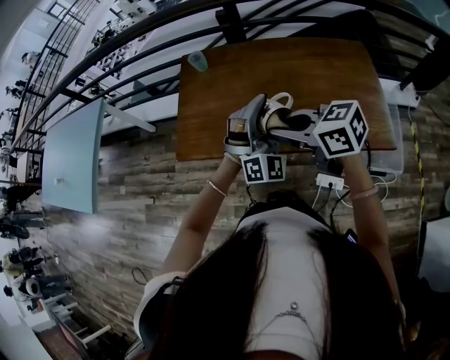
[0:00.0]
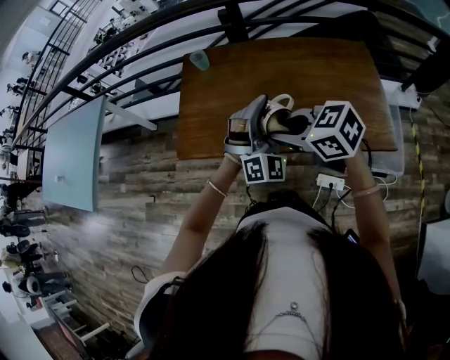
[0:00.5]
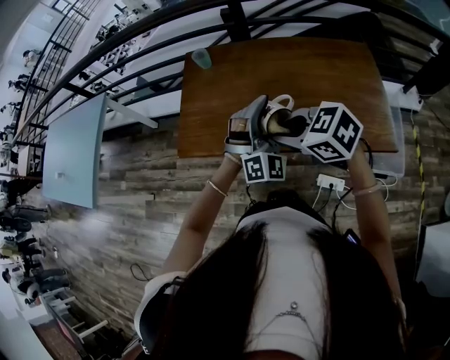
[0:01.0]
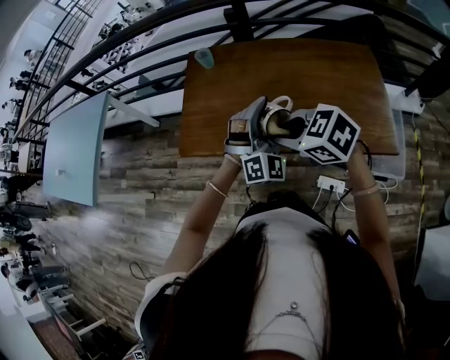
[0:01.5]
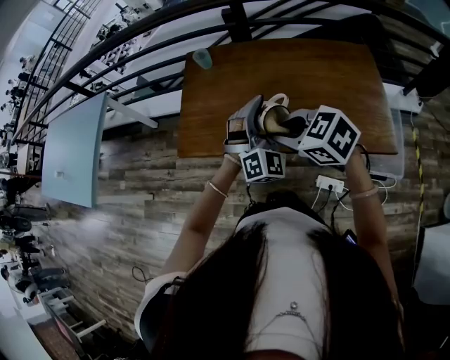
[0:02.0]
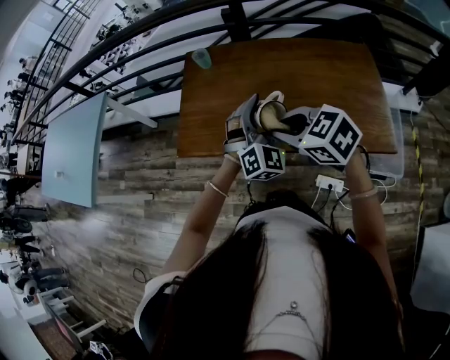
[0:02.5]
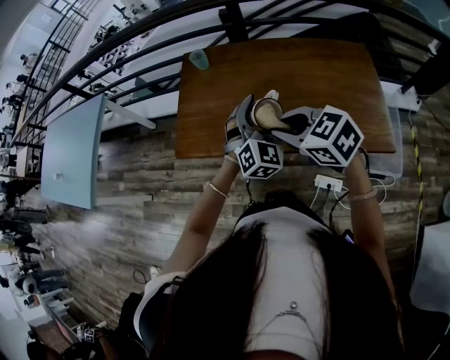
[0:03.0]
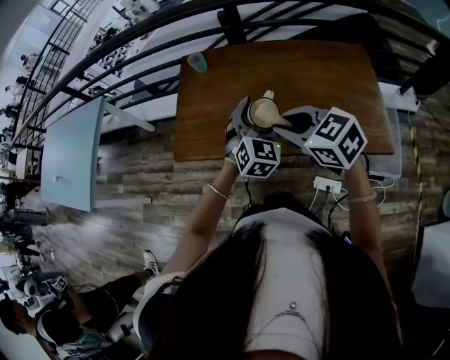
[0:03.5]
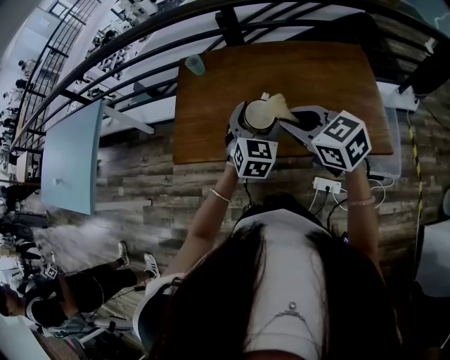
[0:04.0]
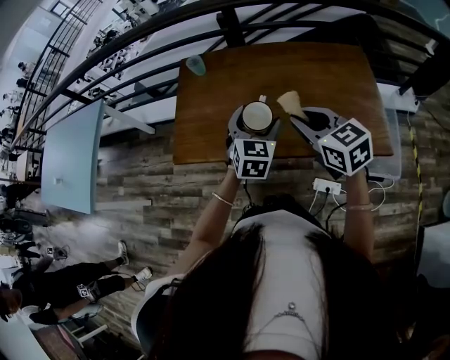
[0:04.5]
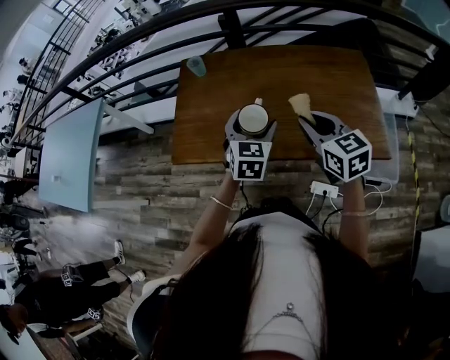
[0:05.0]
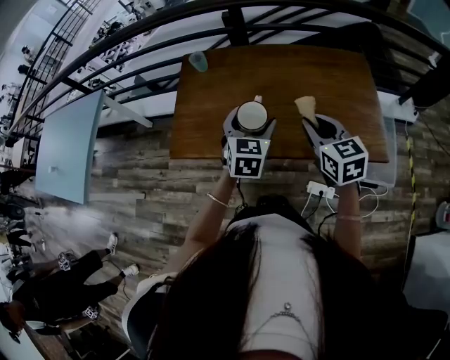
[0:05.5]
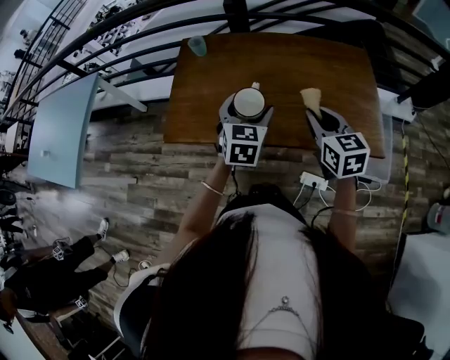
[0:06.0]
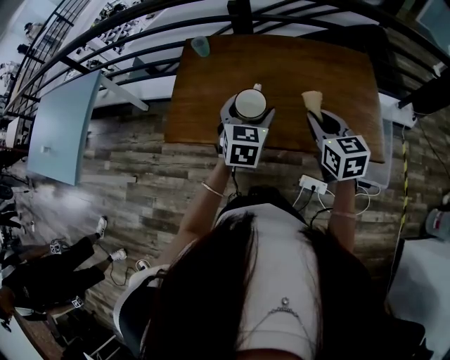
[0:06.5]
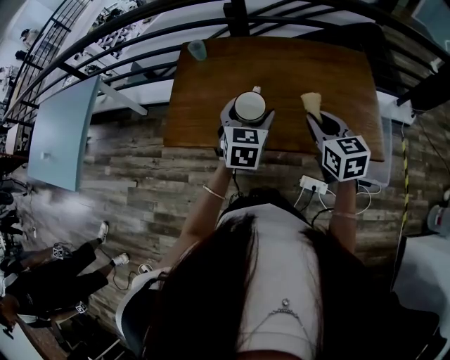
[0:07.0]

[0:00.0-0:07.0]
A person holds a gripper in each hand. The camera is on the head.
0:00.0 to 0:02.0: The right gripper turns by approximately 30 degrees.
0:02.0 to 0:03.5: The left gripper turns by roughly 20 degrees.
0:03.5 to 0:05.0: The left gripper rotates some 20 degrees; the right gripper shifts some 10 cm to the right, and swivels approximately 30 degrees.
0:05.0 to 0:07.0: The grippers move only a little.

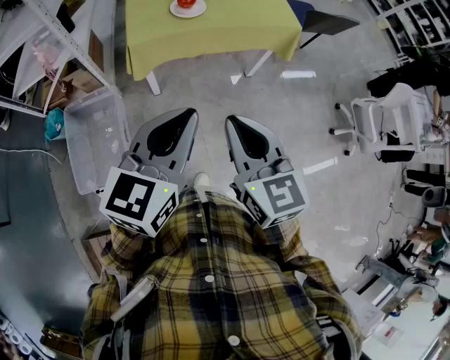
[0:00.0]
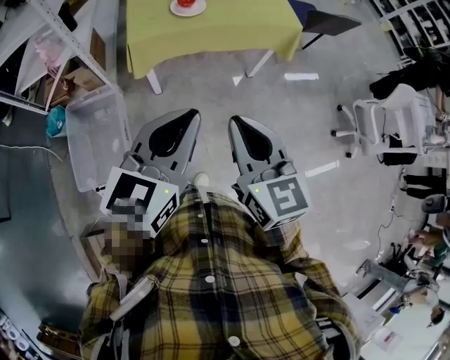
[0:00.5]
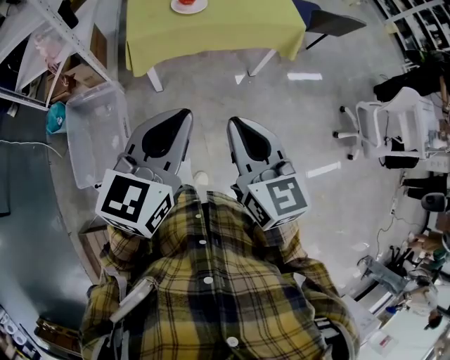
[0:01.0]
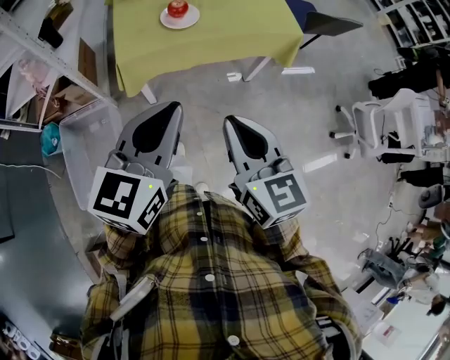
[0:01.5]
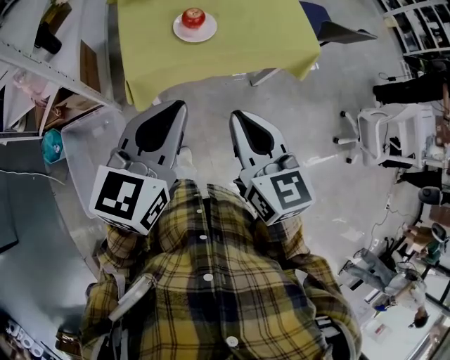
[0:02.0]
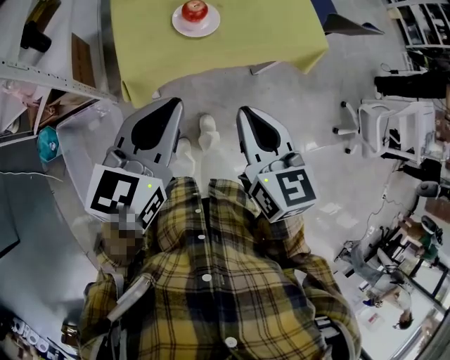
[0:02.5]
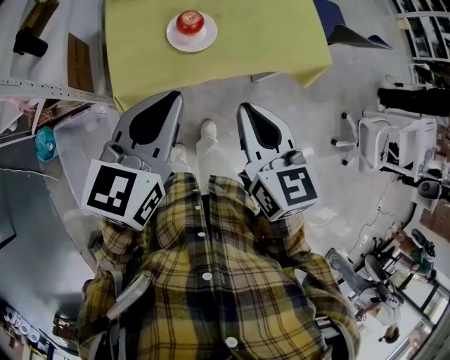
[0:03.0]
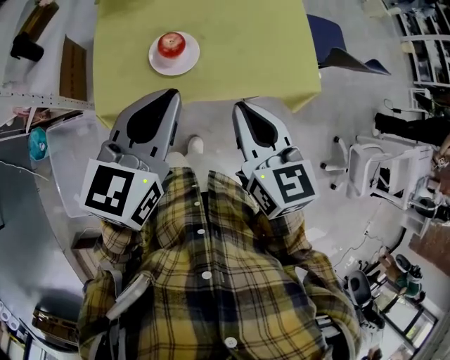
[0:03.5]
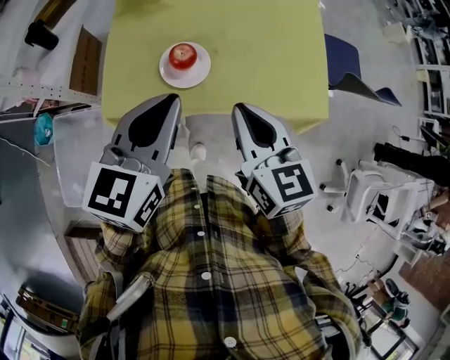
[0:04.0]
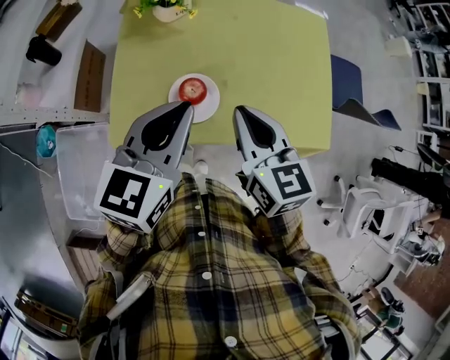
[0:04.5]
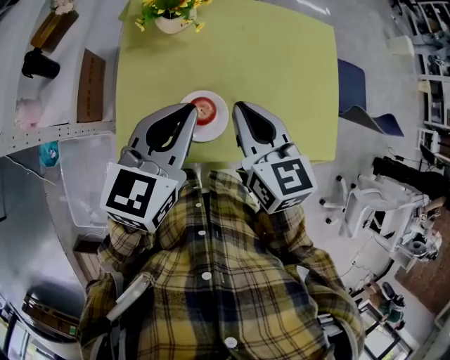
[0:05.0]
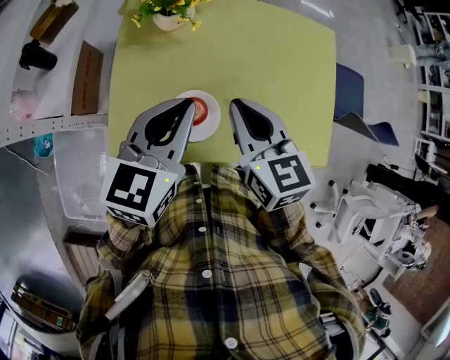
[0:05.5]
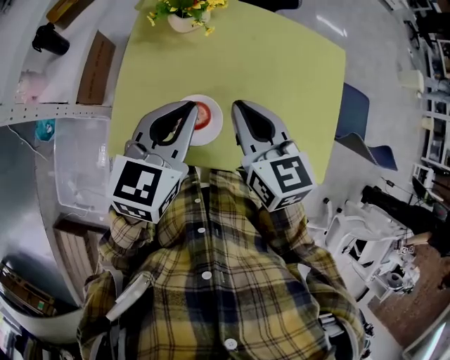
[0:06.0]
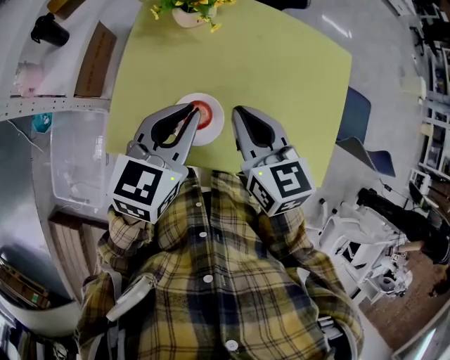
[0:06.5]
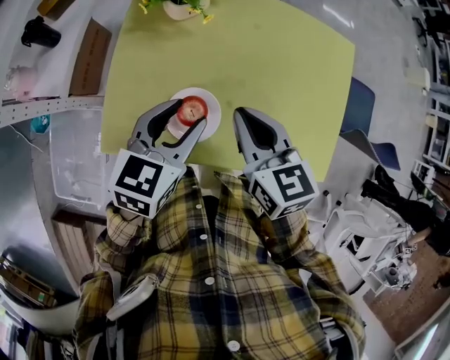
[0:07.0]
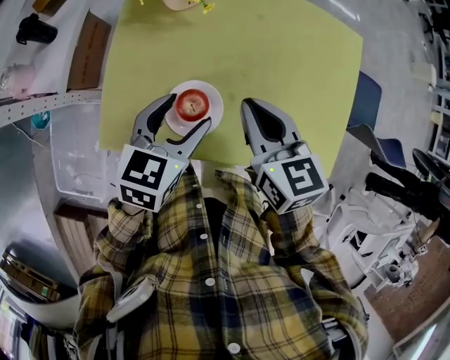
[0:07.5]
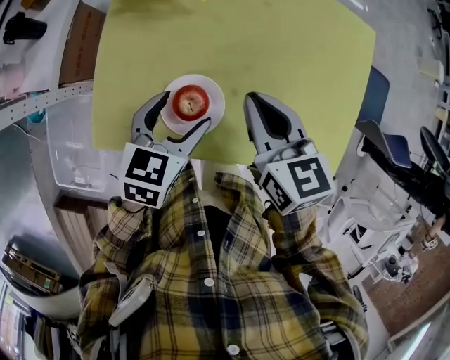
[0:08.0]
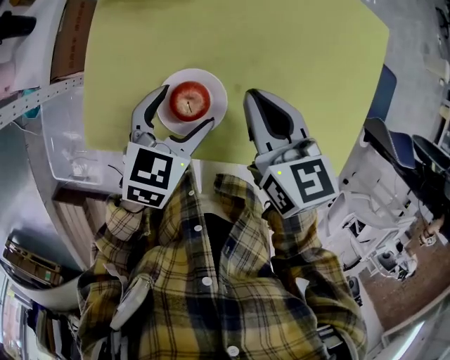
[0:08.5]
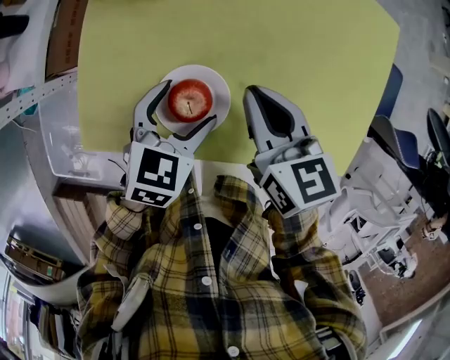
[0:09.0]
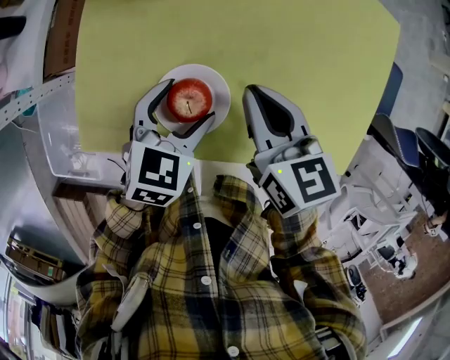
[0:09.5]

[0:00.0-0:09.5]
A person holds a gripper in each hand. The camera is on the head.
0:00.0 to 0:02.0: Both grippers move forward, about 25 cm.
0:02.0 to 0:04.0: Both grippers travel together forward, roughly 25 cm.
0:04.0 to 0:05.5: The grippers both shift forward by about 20 cm.
0:05.5 to 0:07.5: The right gripper travels downward by about 5 cm. The left gripper heads downward, covering about 10 cm, and opens its fingers.
0:07.5 to 0:09.5: Both grippers move downward, some 10 cm.

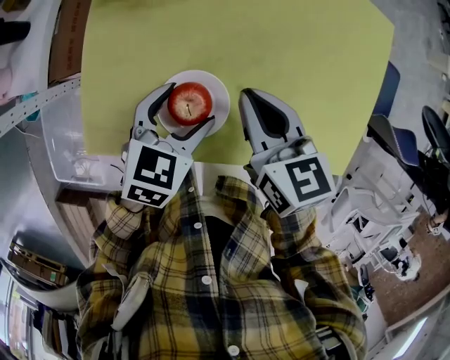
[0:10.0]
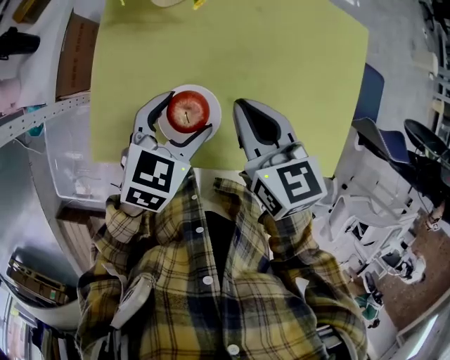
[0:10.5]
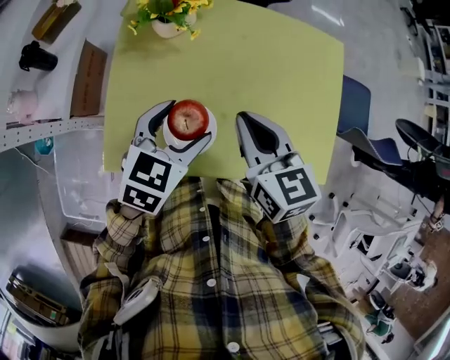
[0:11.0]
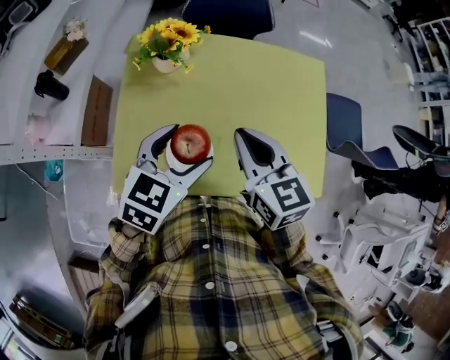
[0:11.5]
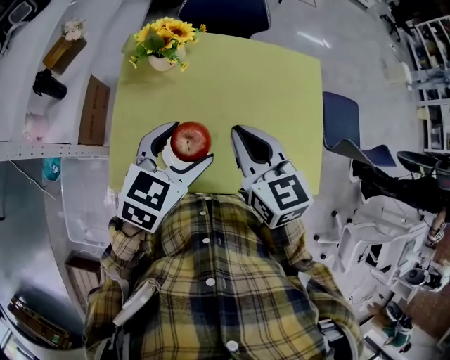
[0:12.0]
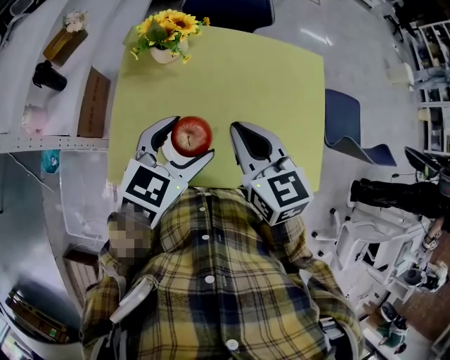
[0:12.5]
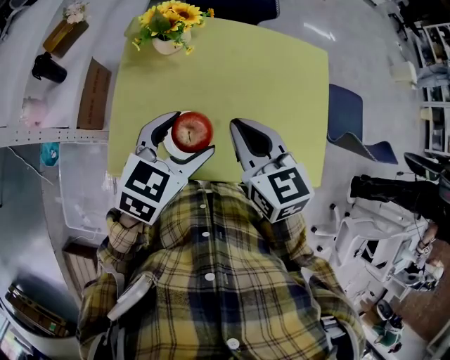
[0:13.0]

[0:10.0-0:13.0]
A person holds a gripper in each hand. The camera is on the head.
0:10.0 to 0:11.5: The two grippers go approximately 15 cm upward.
0:11.5 to 0:13.0: The grippers make only small movements.

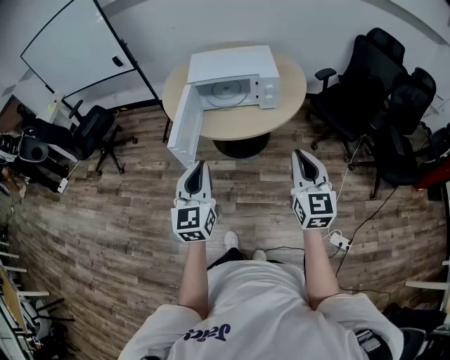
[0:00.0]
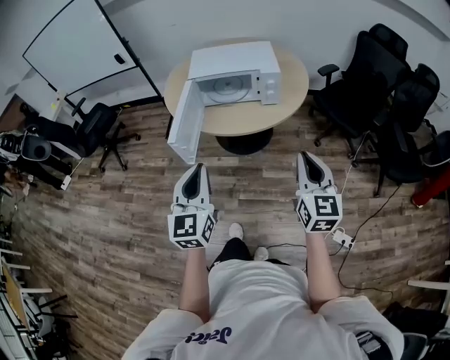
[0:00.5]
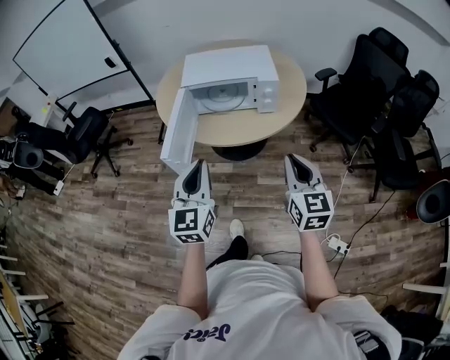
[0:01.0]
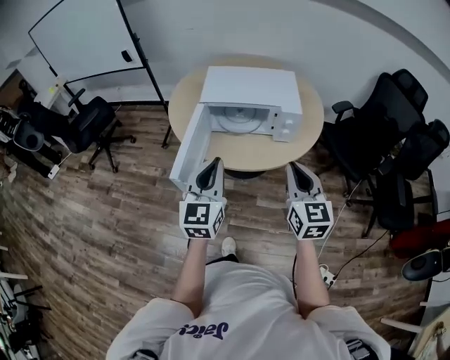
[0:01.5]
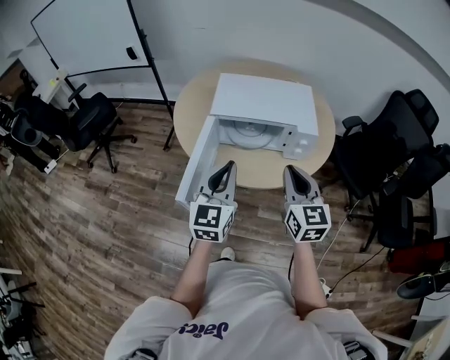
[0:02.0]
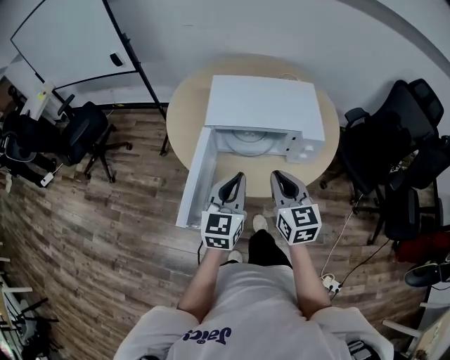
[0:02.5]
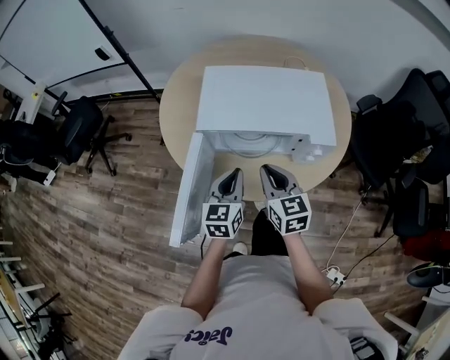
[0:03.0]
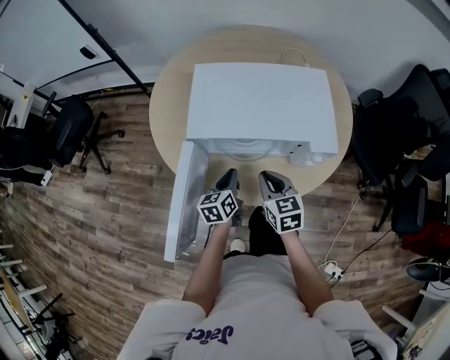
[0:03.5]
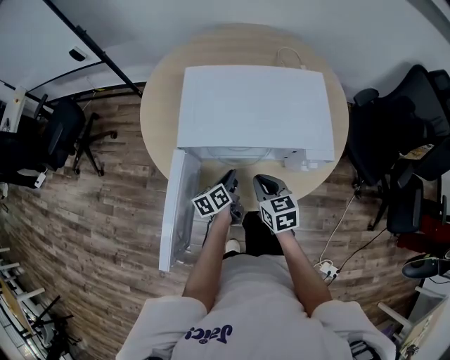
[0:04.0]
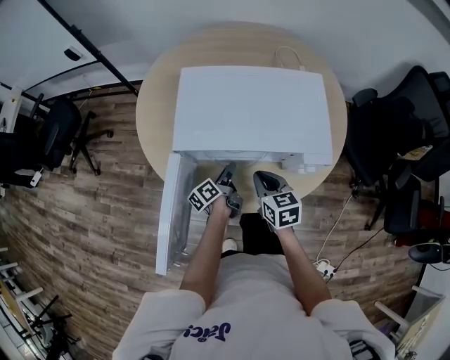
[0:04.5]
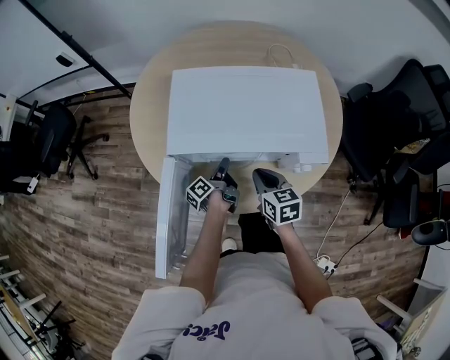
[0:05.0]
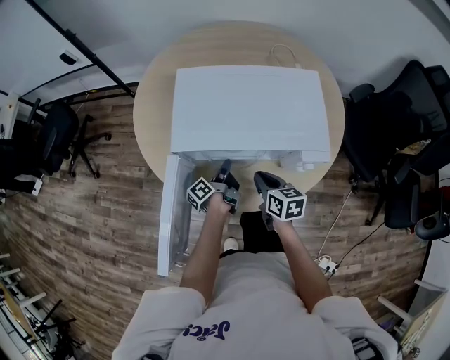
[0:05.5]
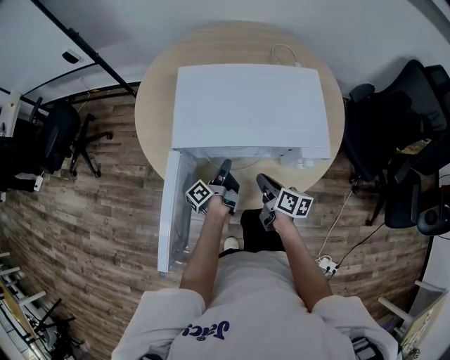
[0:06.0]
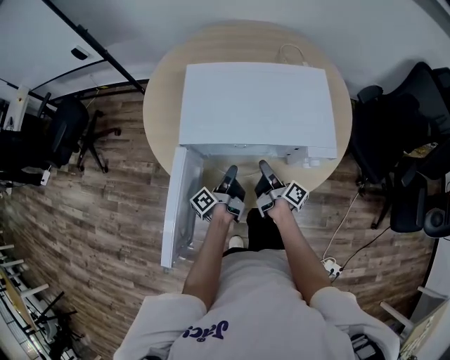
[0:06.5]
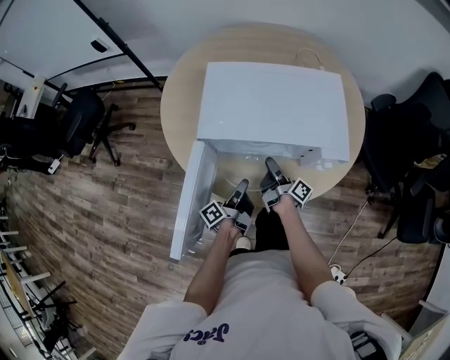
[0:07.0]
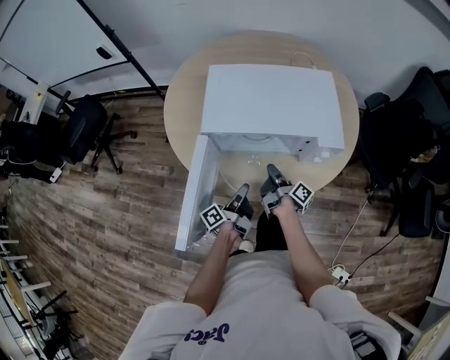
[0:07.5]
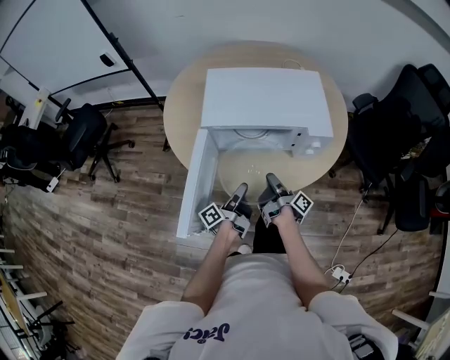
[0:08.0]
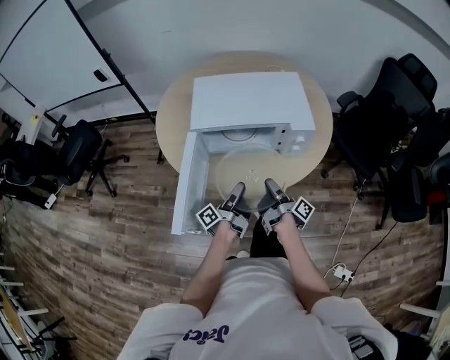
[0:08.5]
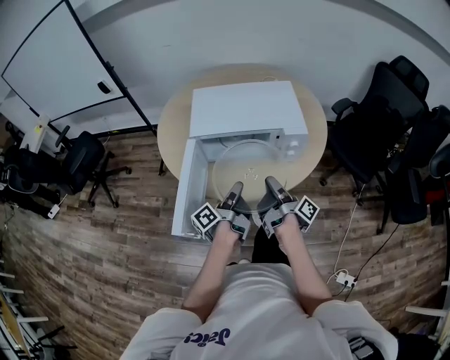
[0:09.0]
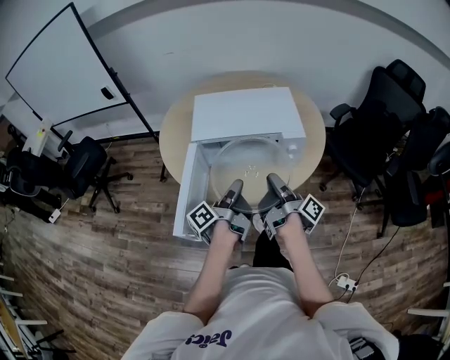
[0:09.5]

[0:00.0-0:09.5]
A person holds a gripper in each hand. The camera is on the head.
0:00.0 to 0:02.0: The right gripper goes some 25 cm forward and to the left; the left gripper heads forward, covering about 25 cm.
0:02.0 to 0:04.0: Both grippers travel together downward and forward, roughly 35 cm. The left gripper twists about 50 degrees counterclockwise, seen from behind. The right gripper rotates roughly 30 degrees.
0:04.0 to 0:05.5: The left gripper rotates approximately 40 degrees, and opens and closes again.
0:05.5 to 0:07.5: The right gripper twists about 60 degrees clockwise, seen from behind, and opens, then closes once more. Meanwhile the left gripper travels backward by some 15 cm.
0:07.5 to 0:09.5: The right gripper goes approximately 25 cm upward and backward; the left gripper goes some 20 cm upward, and opens and closes again.
